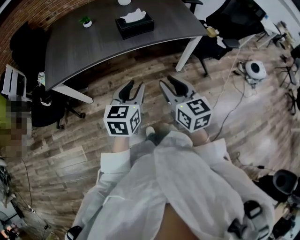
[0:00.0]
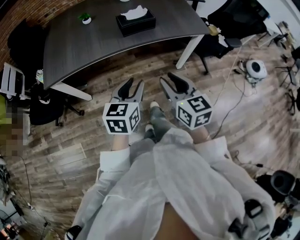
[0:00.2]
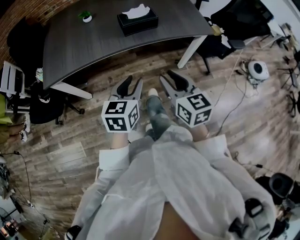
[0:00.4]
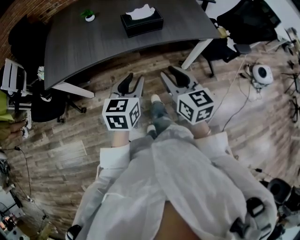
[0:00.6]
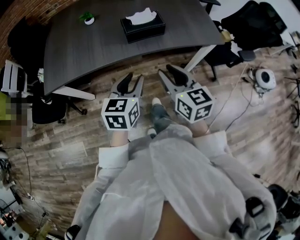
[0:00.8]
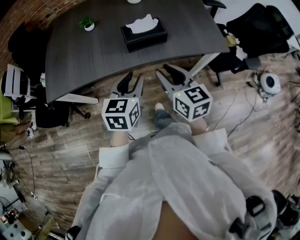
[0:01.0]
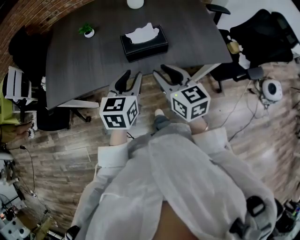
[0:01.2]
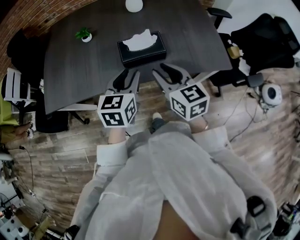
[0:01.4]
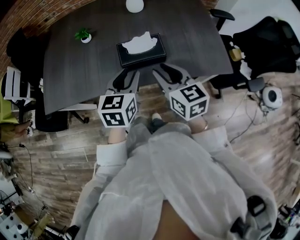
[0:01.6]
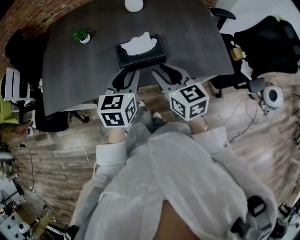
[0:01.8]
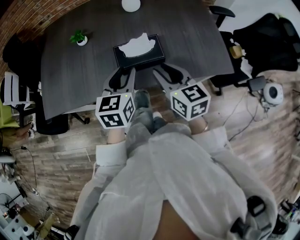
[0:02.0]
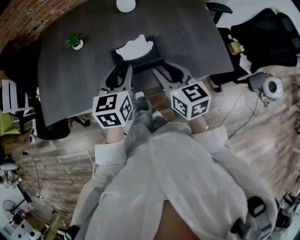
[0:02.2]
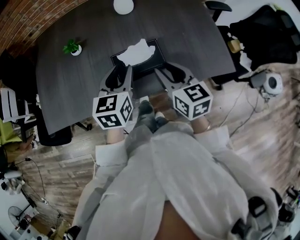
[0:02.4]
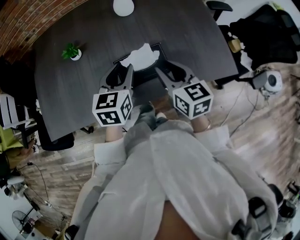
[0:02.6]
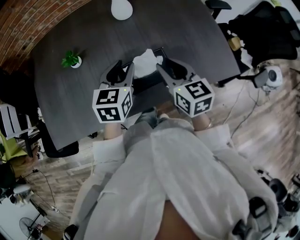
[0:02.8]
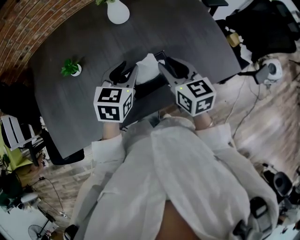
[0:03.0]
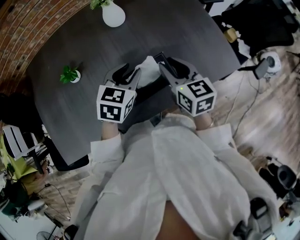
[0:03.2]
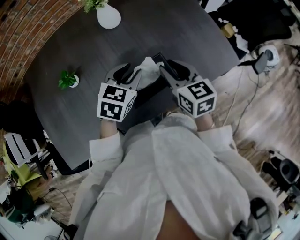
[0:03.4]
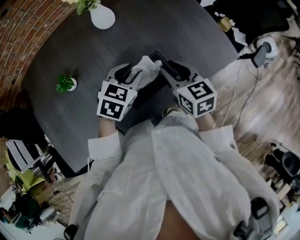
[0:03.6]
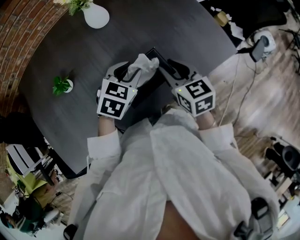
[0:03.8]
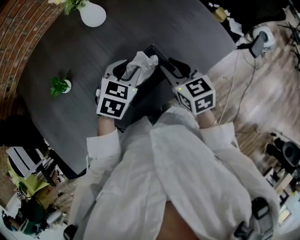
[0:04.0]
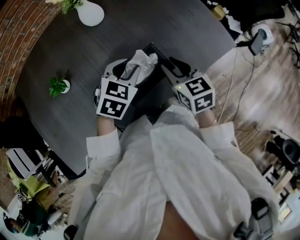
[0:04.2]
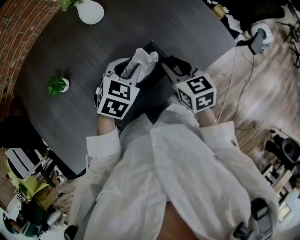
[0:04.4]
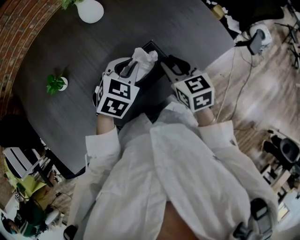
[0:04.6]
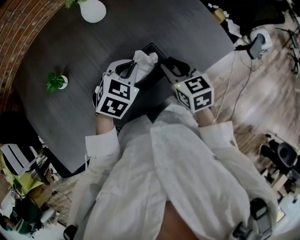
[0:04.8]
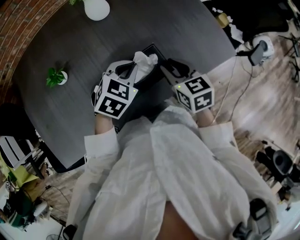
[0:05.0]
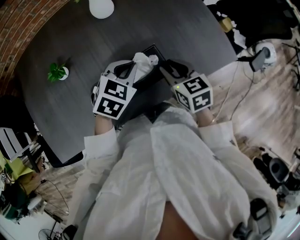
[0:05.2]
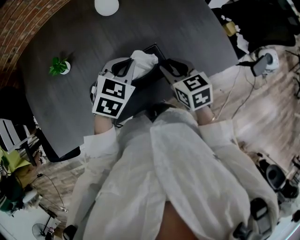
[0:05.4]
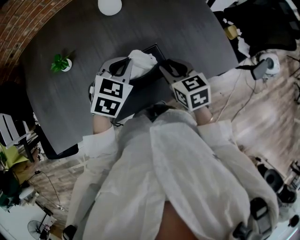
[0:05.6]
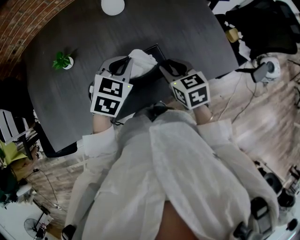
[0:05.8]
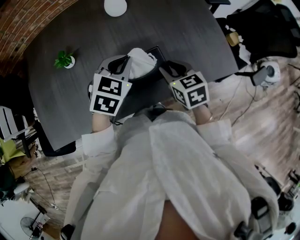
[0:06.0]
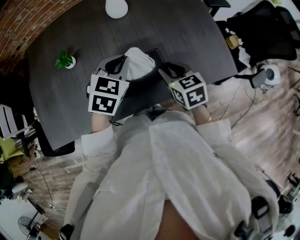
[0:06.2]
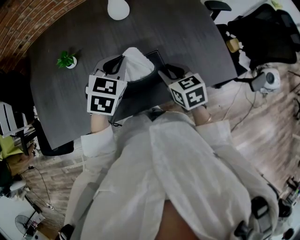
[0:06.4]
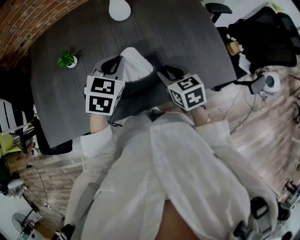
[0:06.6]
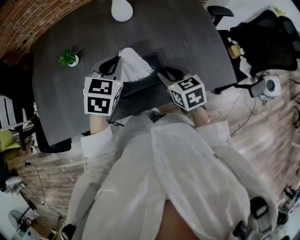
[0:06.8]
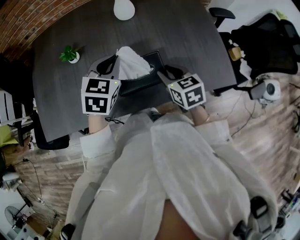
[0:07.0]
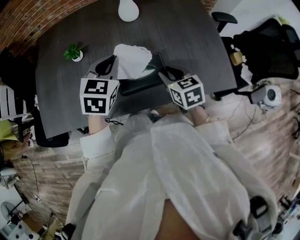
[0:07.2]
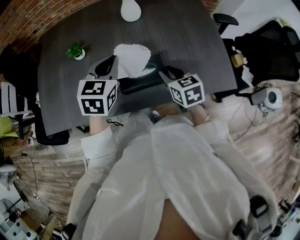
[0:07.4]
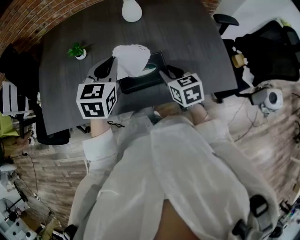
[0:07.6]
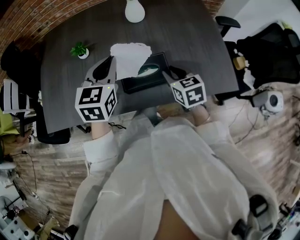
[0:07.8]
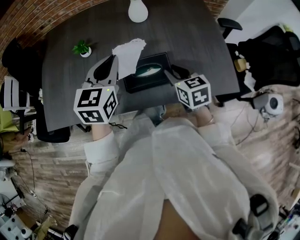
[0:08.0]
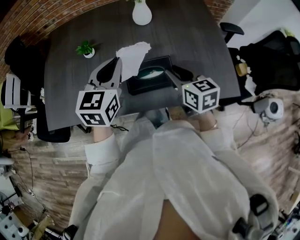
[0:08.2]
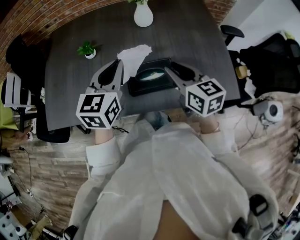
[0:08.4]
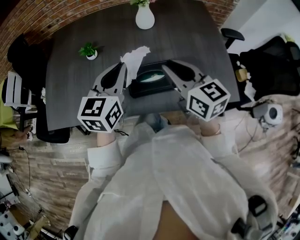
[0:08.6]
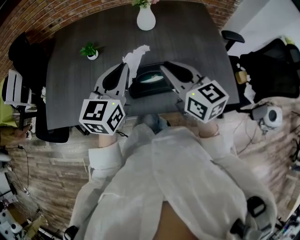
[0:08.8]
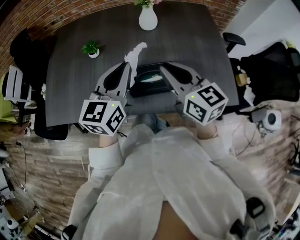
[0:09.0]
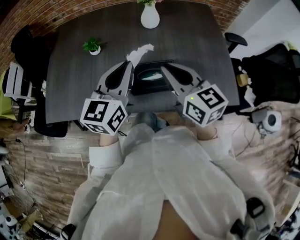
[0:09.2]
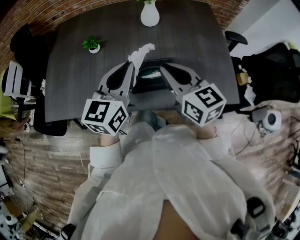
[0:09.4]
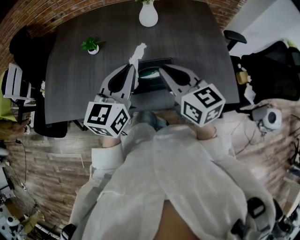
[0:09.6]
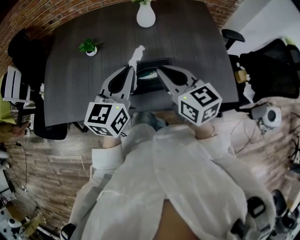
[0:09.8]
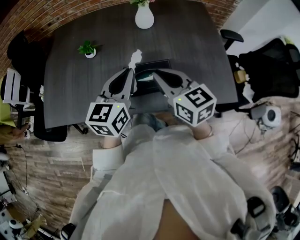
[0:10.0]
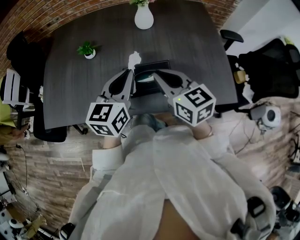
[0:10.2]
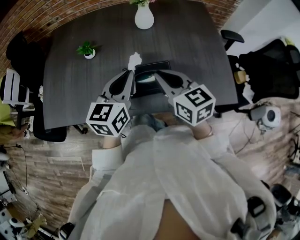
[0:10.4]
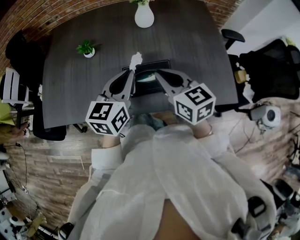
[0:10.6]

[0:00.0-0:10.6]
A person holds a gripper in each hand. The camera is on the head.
0:00.0 to 0:01.6: Both grippers move forward, approximately 35 cm.
0:01.6 to 0:03.0: Both grippers travel together forward, roughly 20 cm. The left gripper turns by roughly 20 degrees.
0:03.0 to 0:04.6: The grippers both shift downward by roughly 5 cm. The left gripper turns by approximately 30 degrees.
0:04.6 to 0:06.0: The left gripper goes approximately 5 cm upward.
0:06.0 to 0:07.6: The left gripper moves upward and to the left, some 10 cm, and turns by roughly 30 degrees.
0:07.6 to 0:09.0: The right gripper moves upward, some 15 cm, and rotates roughly 30 degrees. Meanwhile the left gripper moves upward, about 5 cm, and rotates approximately 20 degrees.
0:09.0 to 0:10.6: Both grippers move downward, about 5 cm.

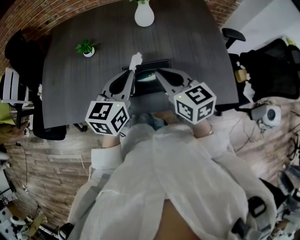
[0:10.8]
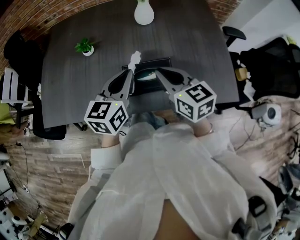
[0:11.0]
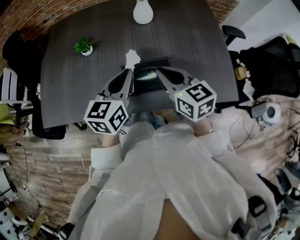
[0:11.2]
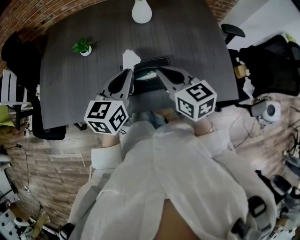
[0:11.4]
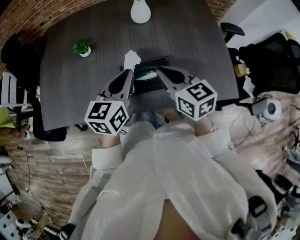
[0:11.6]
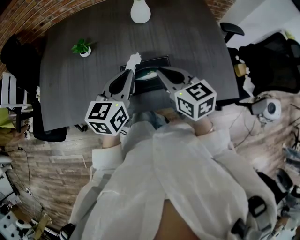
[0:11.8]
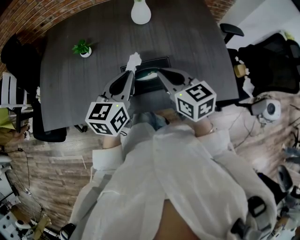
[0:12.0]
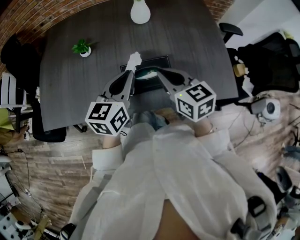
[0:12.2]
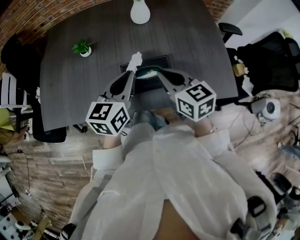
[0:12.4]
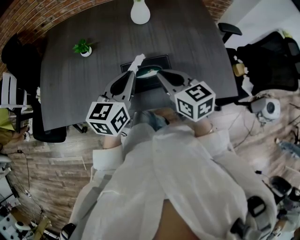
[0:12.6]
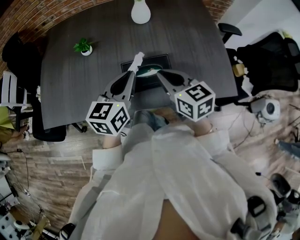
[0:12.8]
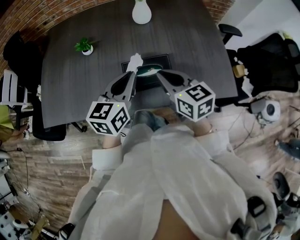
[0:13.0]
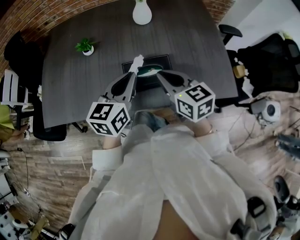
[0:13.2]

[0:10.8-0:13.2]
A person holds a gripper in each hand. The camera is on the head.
0:10.8 to 0:13.2: The grippers make only small movements.

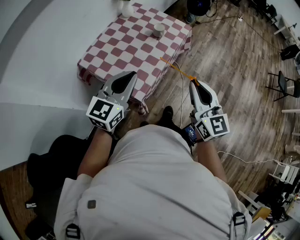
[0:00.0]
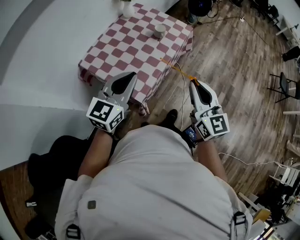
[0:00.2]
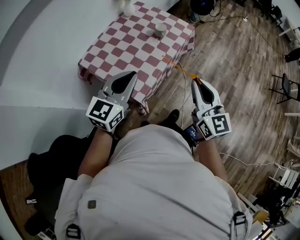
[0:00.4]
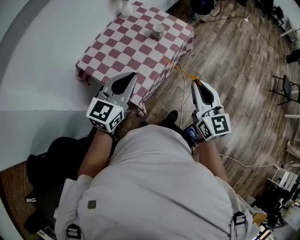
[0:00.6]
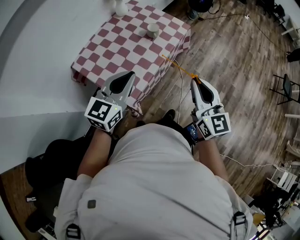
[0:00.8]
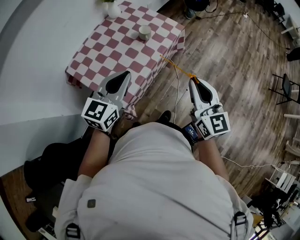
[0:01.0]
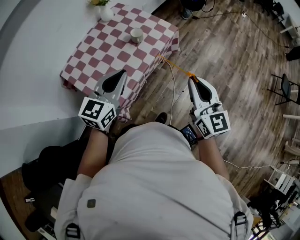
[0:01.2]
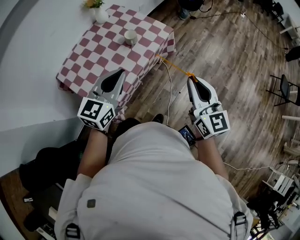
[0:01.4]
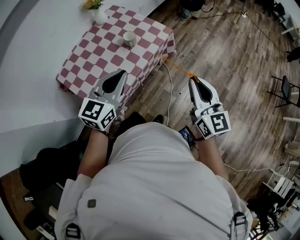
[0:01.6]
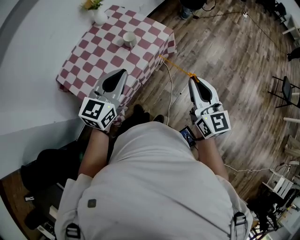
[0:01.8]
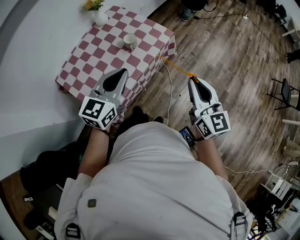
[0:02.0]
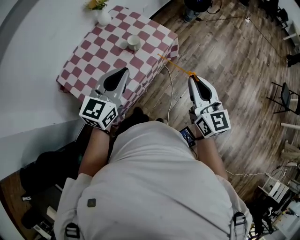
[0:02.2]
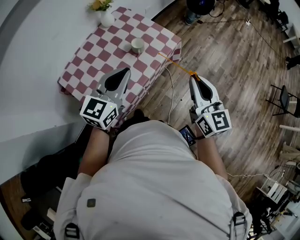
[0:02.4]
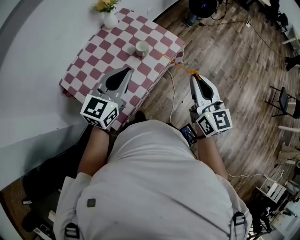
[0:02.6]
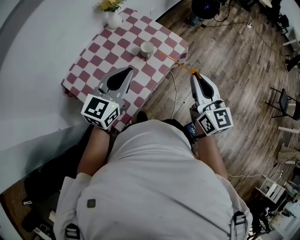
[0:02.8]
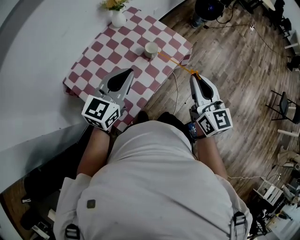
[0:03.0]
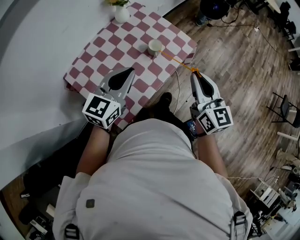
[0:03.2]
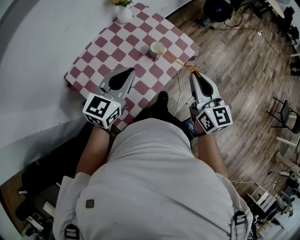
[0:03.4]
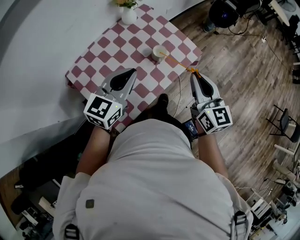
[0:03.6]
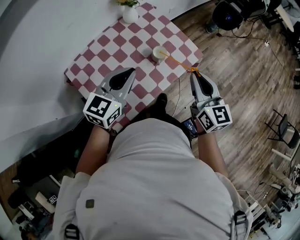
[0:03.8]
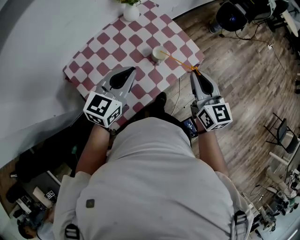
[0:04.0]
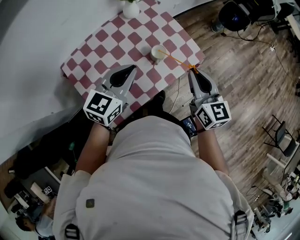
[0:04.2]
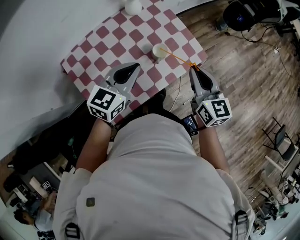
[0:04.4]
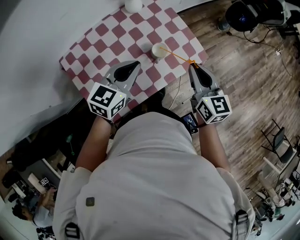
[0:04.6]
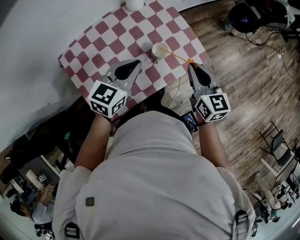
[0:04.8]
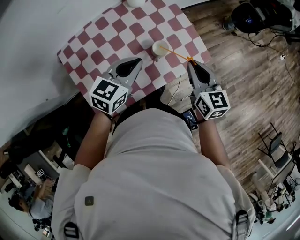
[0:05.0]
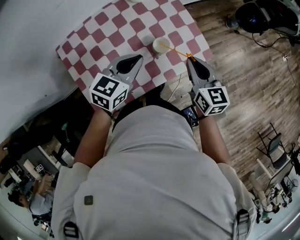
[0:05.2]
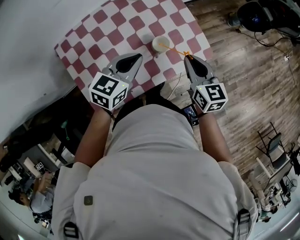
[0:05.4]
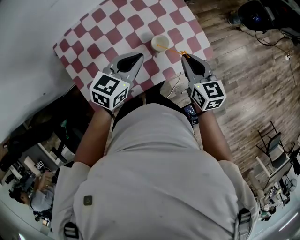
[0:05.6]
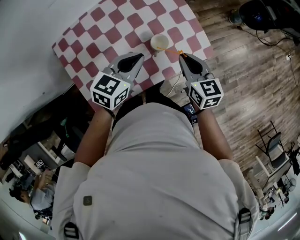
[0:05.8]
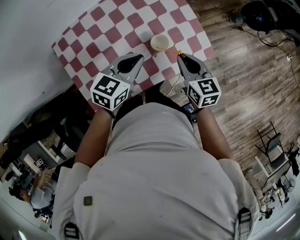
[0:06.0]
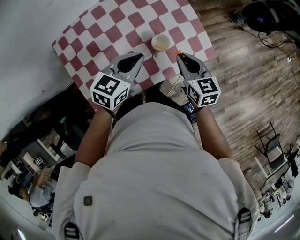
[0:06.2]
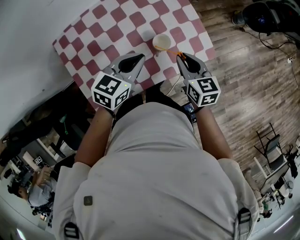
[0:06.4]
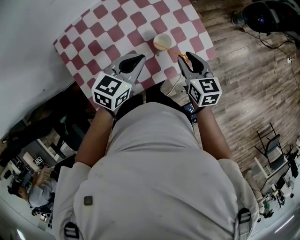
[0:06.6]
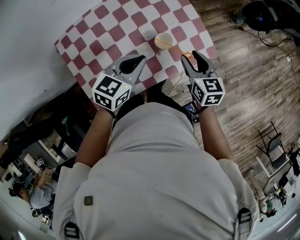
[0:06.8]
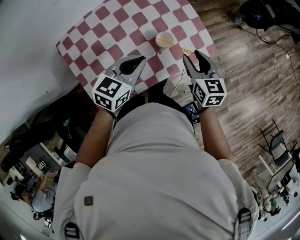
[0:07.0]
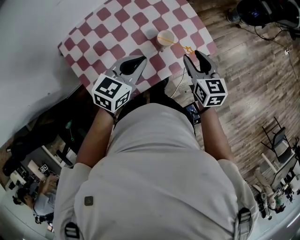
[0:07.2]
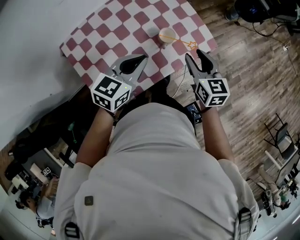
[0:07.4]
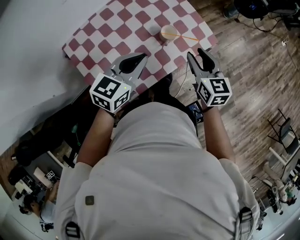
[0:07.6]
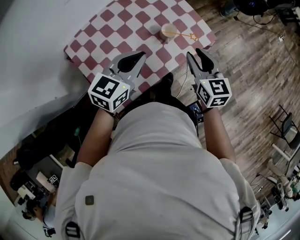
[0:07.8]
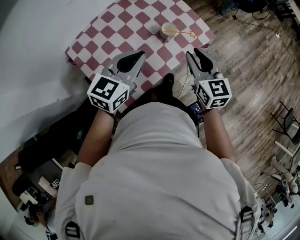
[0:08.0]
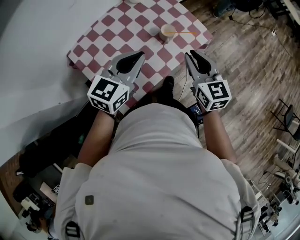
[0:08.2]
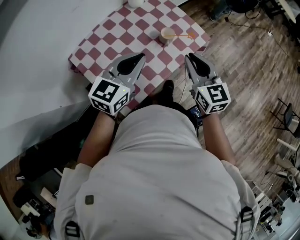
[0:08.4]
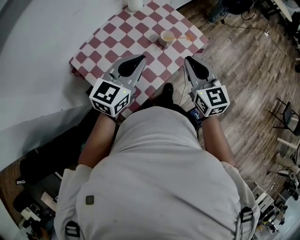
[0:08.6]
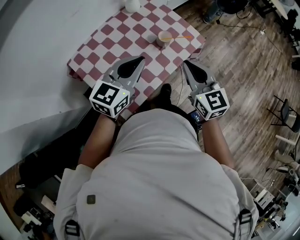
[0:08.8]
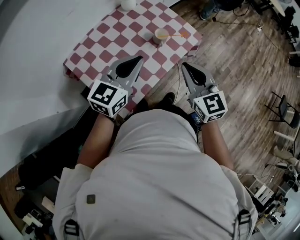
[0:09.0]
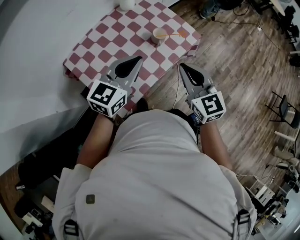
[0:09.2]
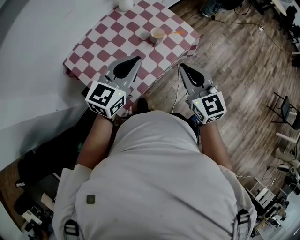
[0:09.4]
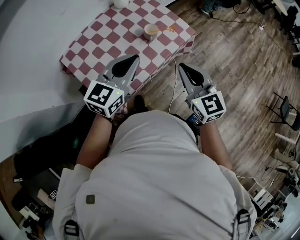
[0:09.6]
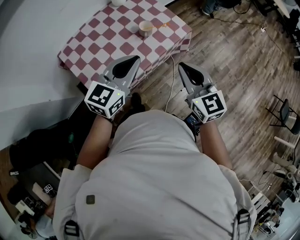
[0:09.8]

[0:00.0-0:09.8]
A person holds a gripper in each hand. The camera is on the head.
0:00.0 to 0:01.4: Both grippers travel together to the right and forward, approximately 25 cm.
0:01.4 to 0:02.8: The grippers both shift forward and to the left by some 15 cm.
0:02.8 to 0:04.2: The two grippers go approximately 15 cm forward and downward.
0:04.2 to 0:05.6: The grippers both shift downward and forward by roughly 15 cm.
0:05.6 to 0:07.0: The right gripper opens up.
0:07.0 to 0:08.4: The left gripper moves upward, backward and to the left, about 20 cm, and changes its angle by about 20 degrees. Meanwhile the right gripper travels backward and upward by about 20 cm, and closes.
0:08.4 to 0:09.8: The two grippers go approximately 15 cm to the right and backward.

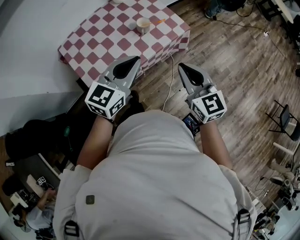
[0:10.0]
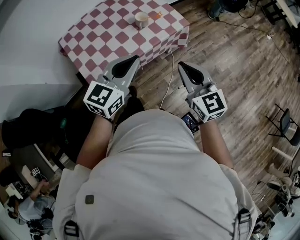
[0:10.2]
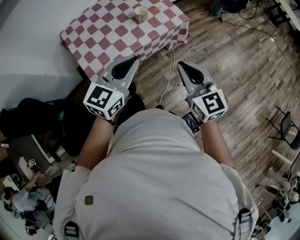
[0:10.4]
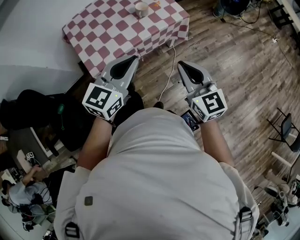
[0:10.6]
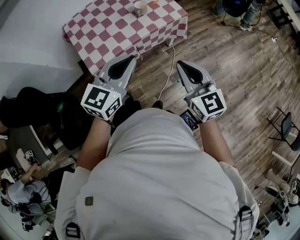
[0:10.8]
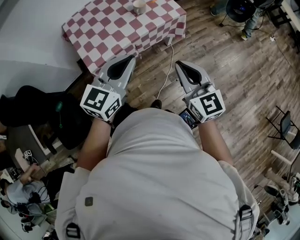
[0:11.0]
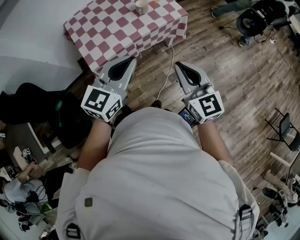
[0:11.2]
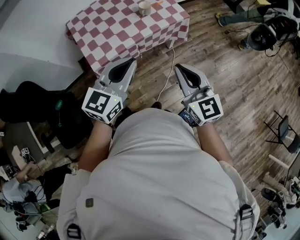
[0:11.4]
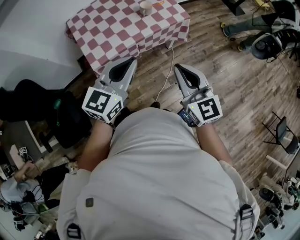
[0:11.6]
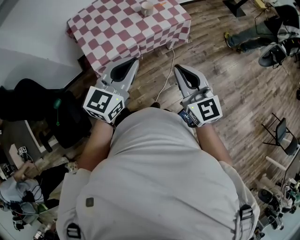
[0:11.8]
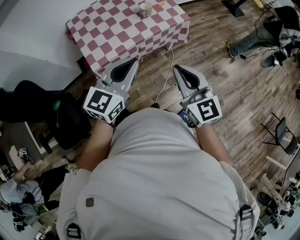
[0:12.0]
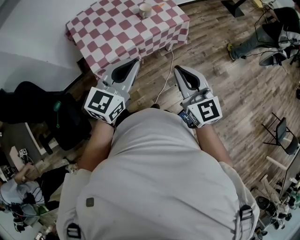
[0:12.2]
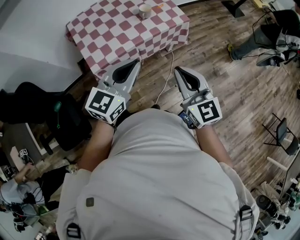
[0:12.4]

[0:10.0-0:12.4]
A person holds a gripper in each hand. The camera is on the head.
0:10.0 to 0:11.2: The grippers both shift backward by some 15 cm.
0:11.2 to 0:12.4: The grippers make only small movements.
